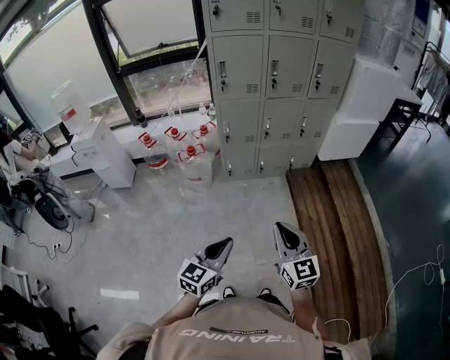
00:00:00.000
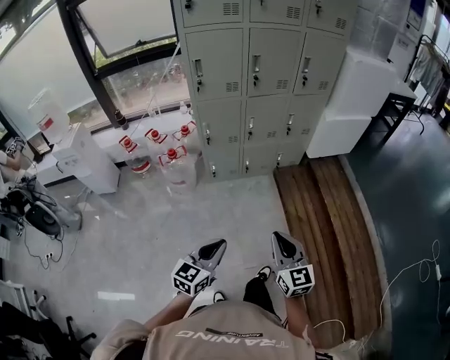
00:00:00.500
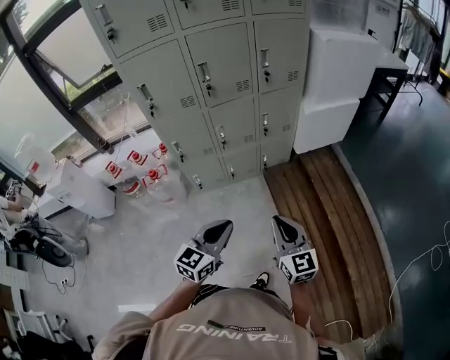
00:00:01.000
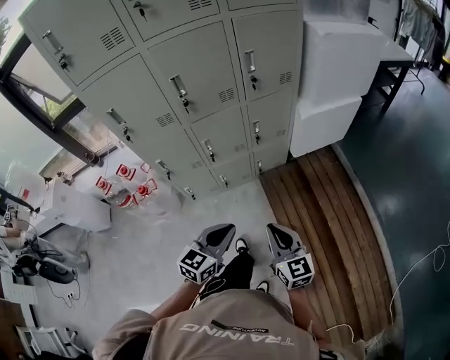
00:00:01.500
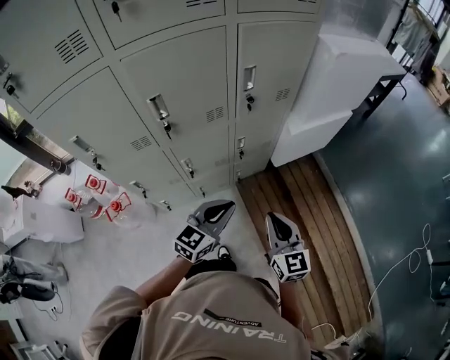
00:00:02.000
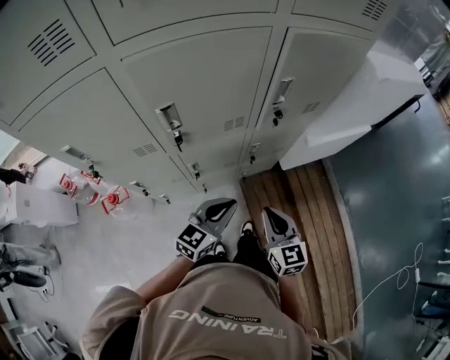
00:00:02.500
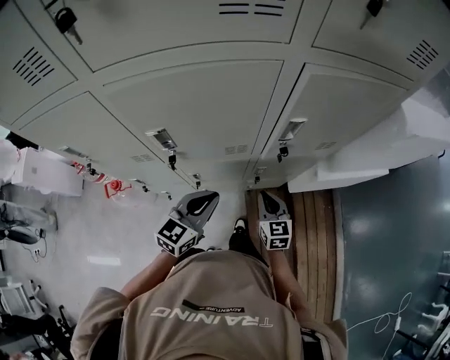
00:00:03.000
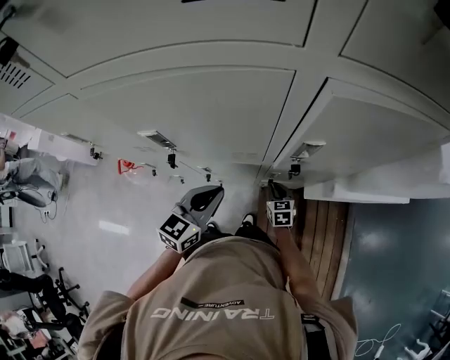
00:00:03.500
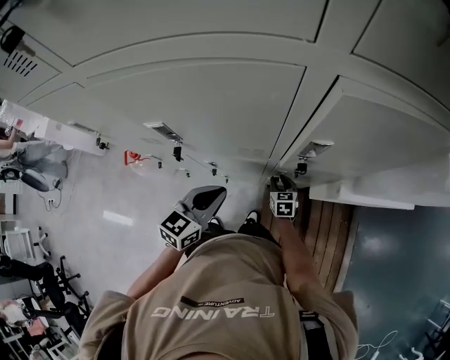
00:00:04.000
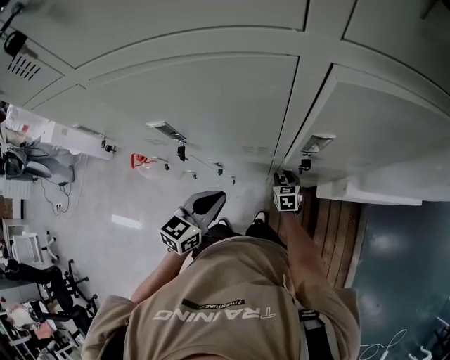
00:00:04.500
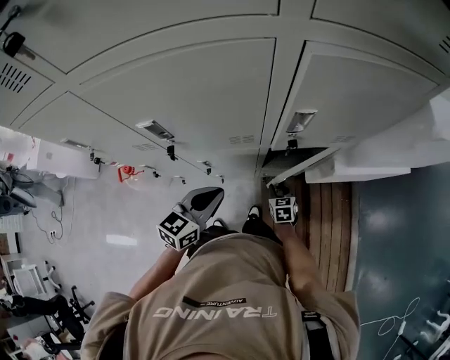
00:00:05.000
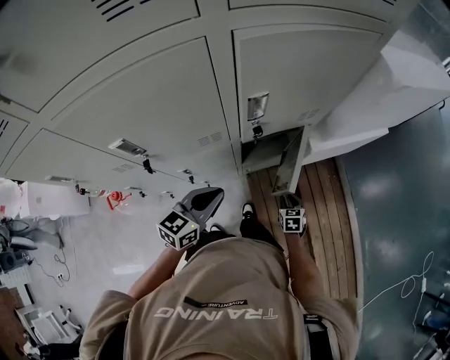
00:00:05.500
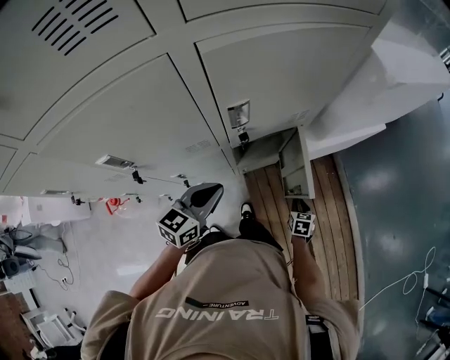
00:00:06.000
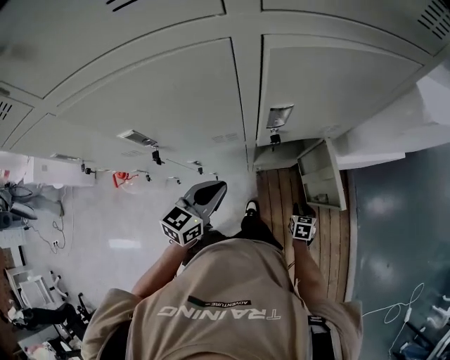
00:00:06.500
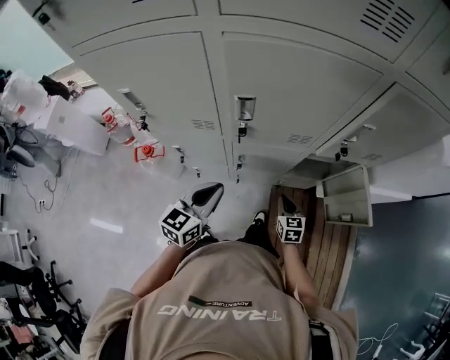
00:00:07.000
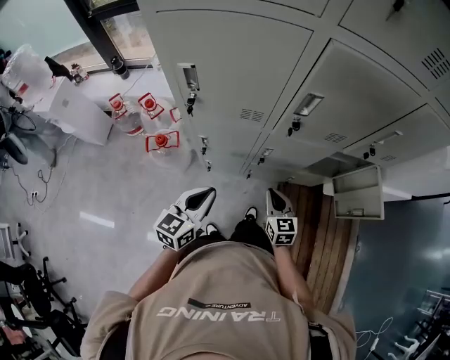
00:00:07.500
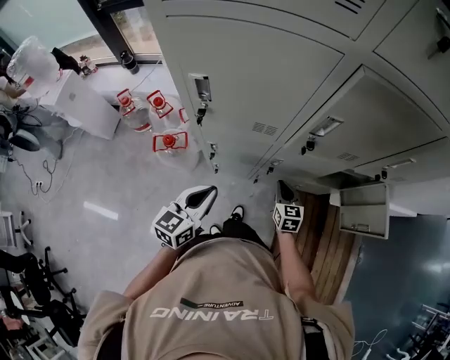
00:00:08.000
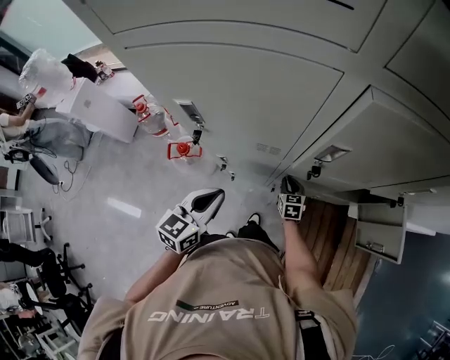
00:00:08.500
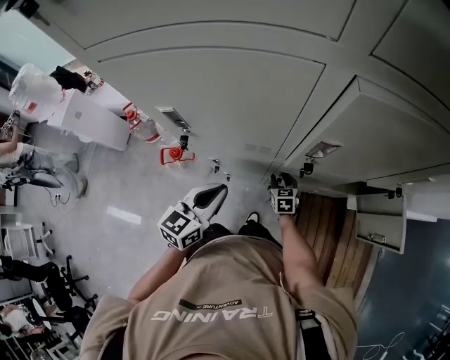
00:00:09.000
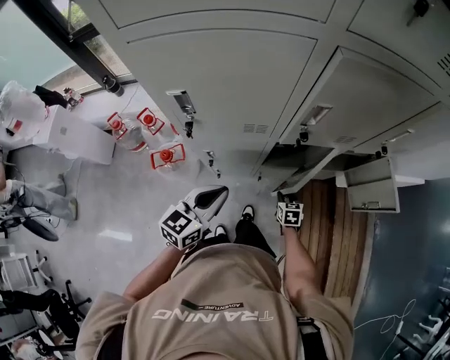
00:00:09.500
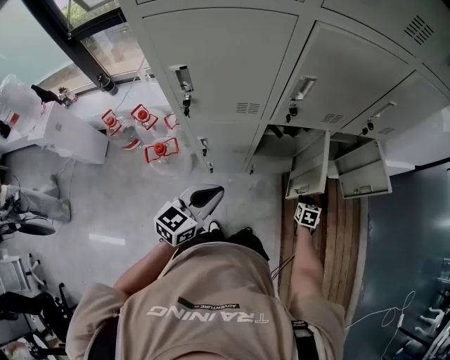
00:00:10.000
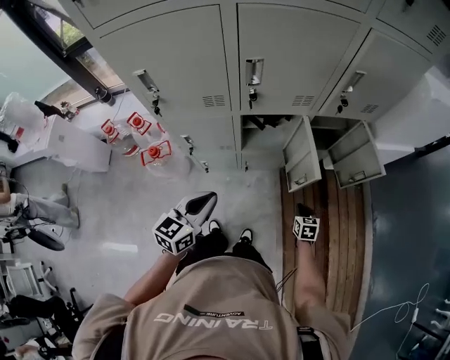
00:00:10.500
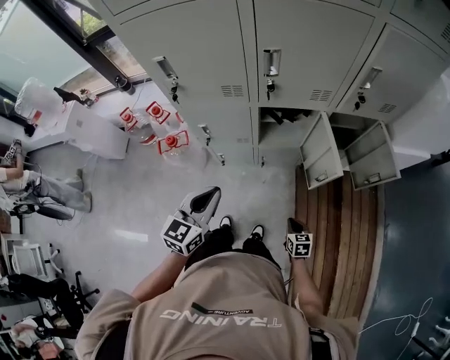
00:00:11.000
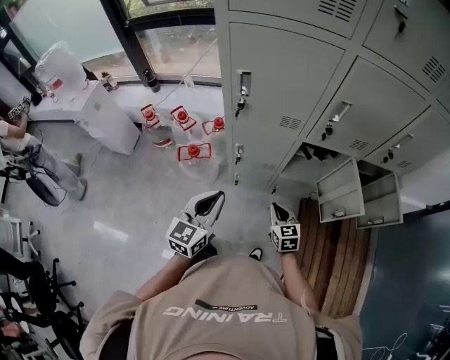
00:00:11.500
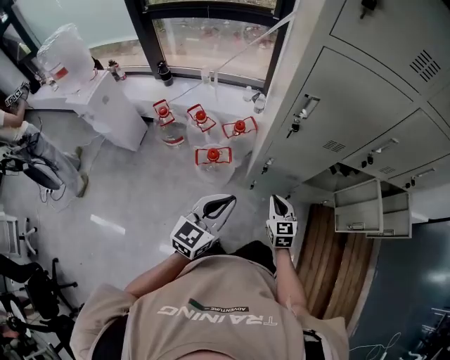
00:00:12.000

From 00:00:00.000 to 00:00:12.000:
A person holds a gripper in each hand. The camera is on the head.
From 00:00:00.000 to 00:00:02.000: The pair of grippers is taken forward, some 60 cm. The left gripper changes its angle by roughly 30 degrees. Meanwhile the right gripper swivels some 20 degrees.
From 00:00:02.000 to 00:00:04.000: The left gripper changes place by about 25 cm, and rotates approximately 30 degrees. The right gripper shifts by roughly 50 cm, and points its fingers approximately 30 degrees further downward.
From 00:00:04.000 to 00:00:06.000: The left gripper ends up some 10 cm from where it was, and changes its angle by some 20 degrees. The right gripper moves approximately 30 cm, and swivels about 40 degrees.
From 00:00:06.000 to 00:00:08.000: The right gripper shifts by some 30 cm, swivels about 50 degrees, and closes its fingers. Meanwhile the left gripper ends up about 15 cm from where it was, and turns by some 30 degrees.
From 00:00:08.000 to 00:00:10.000: The left gripper shifts by about 5 cm, and changes its angle by some 20 degrees. The right gripper changes place by about 25 cm, and changes its angle by some 30 degrees.
From 00:00:10.000 to 00:00:12.000: The left gripper changes place by approximately 25 cm. The right gripper ends up some 50 cm from where it was, and rotates some 40 degrees.

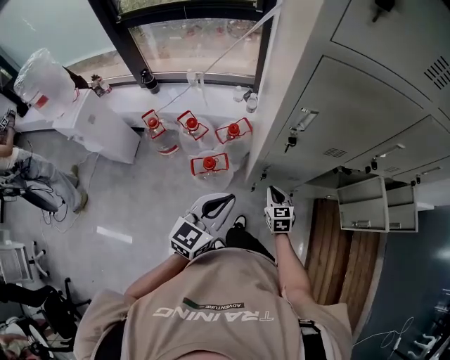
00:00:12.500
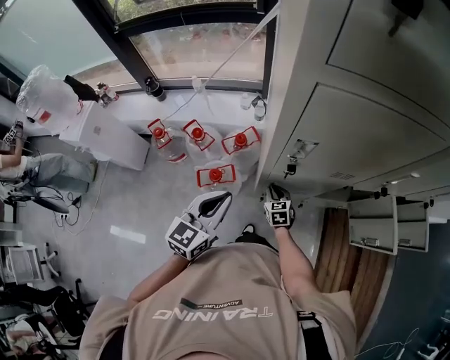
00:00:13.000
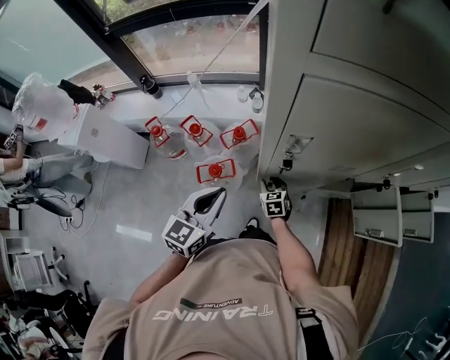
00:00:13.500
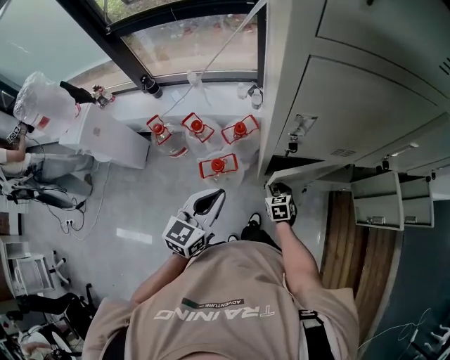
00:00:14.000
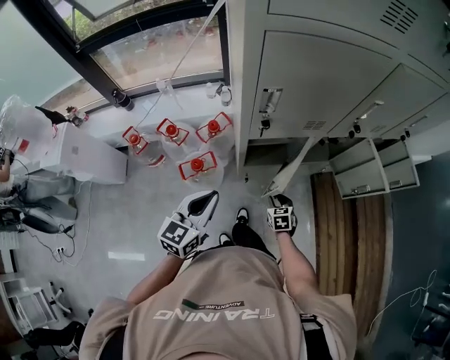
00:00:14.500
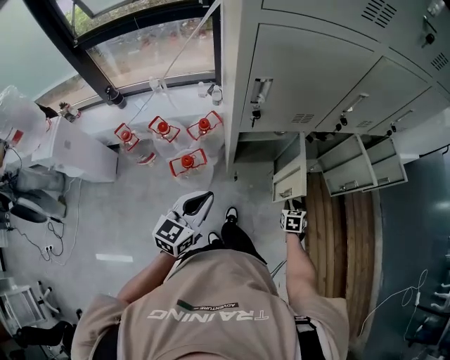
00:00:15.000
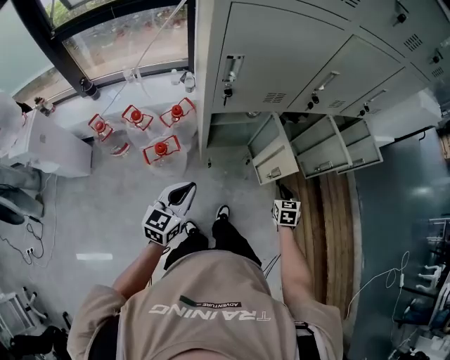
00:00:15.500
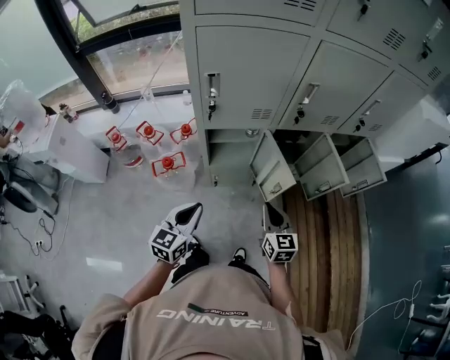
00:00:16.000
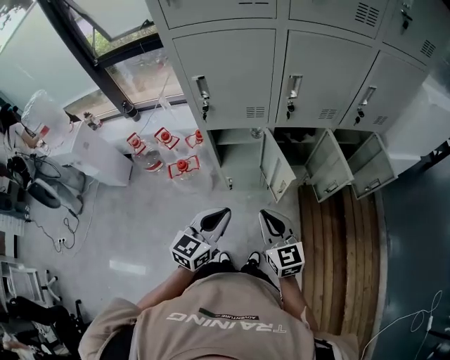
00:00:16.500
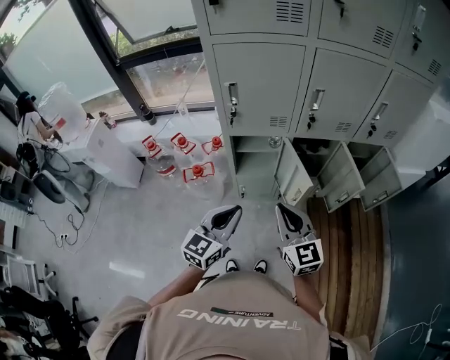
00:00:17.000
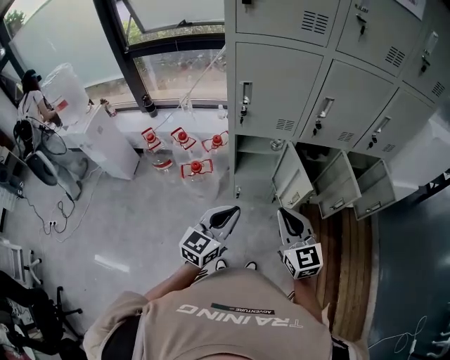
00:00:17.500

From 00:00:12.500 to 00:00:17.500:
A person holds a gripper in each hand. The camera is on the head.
From 00:00:12.500 to 00:00:15.000: The right gripper shifts by approximately 25 cm, and changes its angle by some 30 degrees.
From 00:00:15.000 to 00:00:17.500: The left gripper goes some 20 cm to the right and backward, while the right gripper shifts approximately 40 cm upward and backward, and points its fingers approximately 50 degrees further upward.

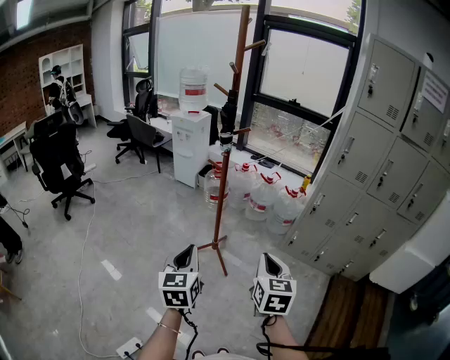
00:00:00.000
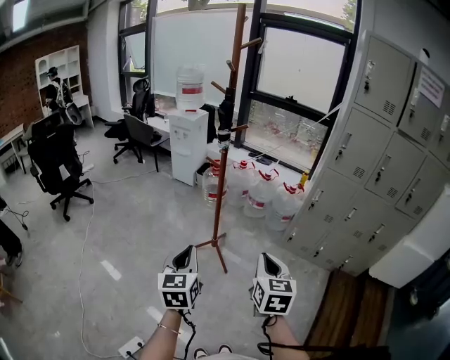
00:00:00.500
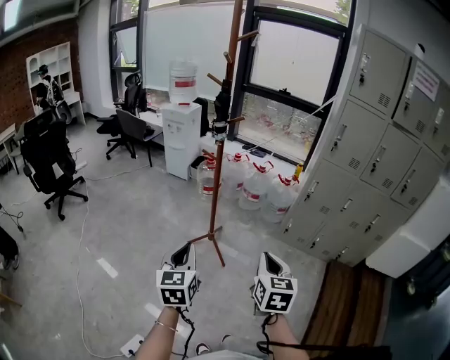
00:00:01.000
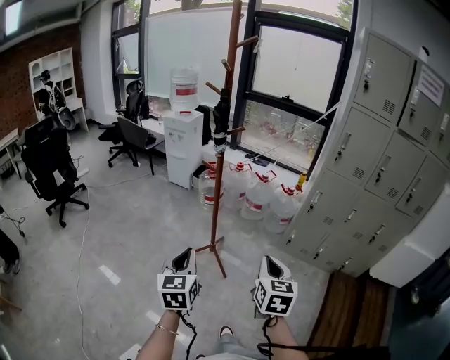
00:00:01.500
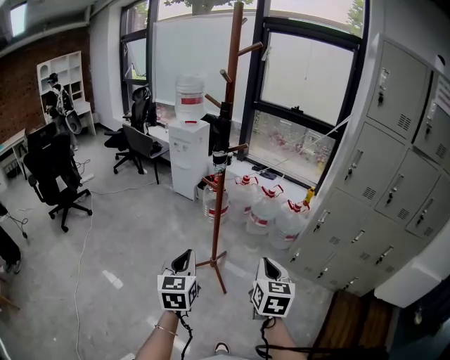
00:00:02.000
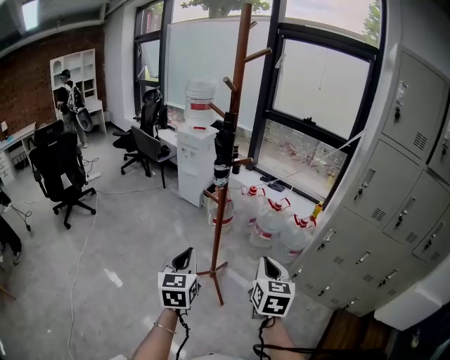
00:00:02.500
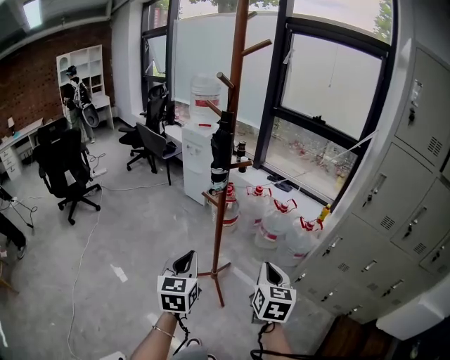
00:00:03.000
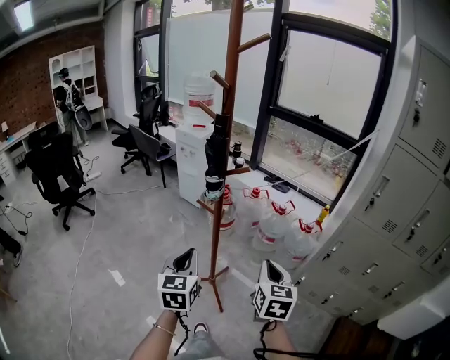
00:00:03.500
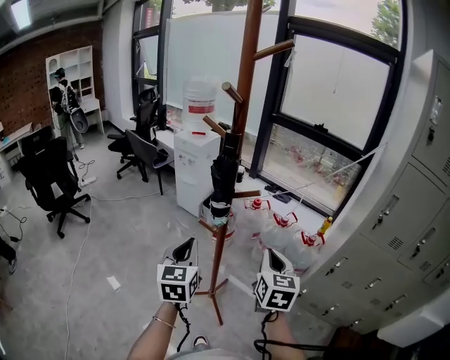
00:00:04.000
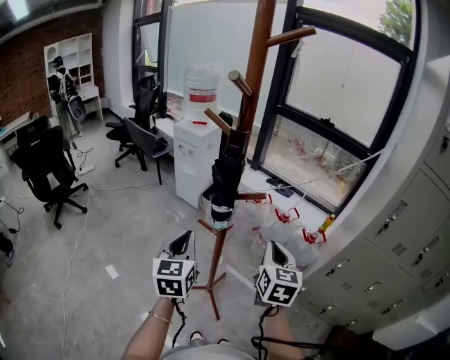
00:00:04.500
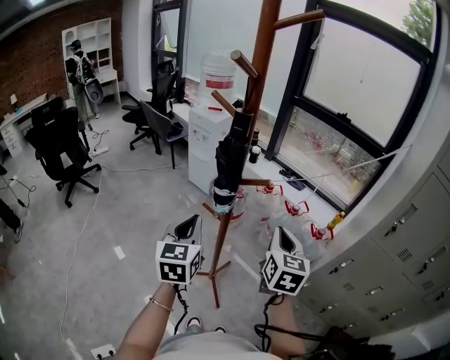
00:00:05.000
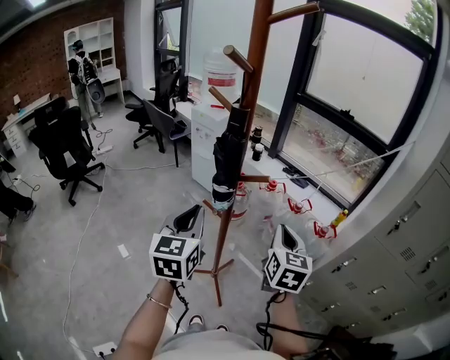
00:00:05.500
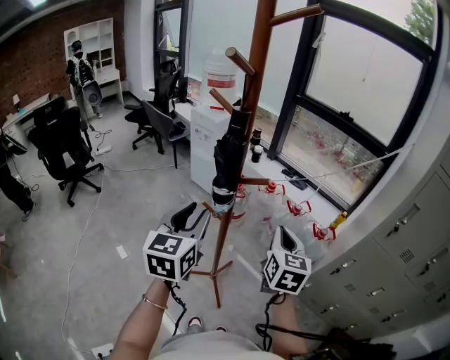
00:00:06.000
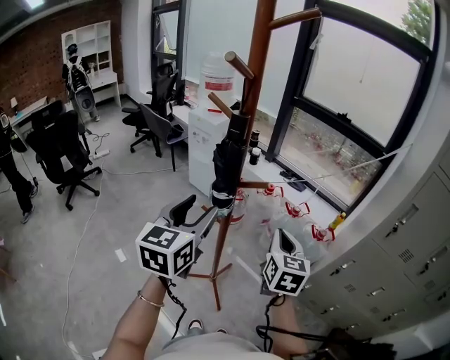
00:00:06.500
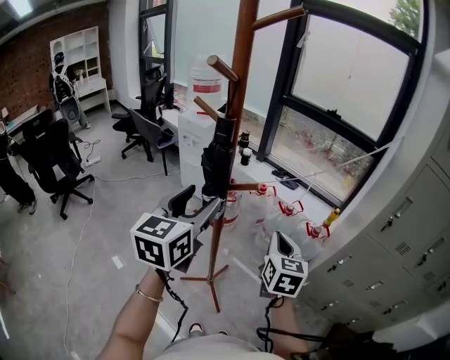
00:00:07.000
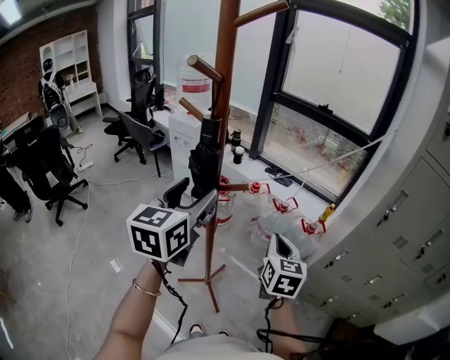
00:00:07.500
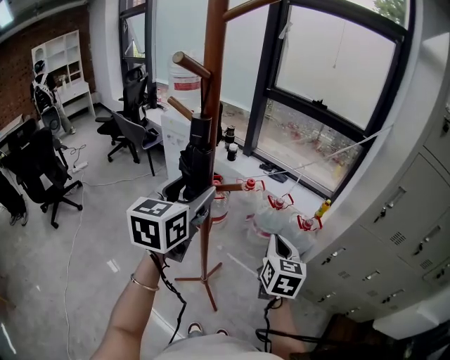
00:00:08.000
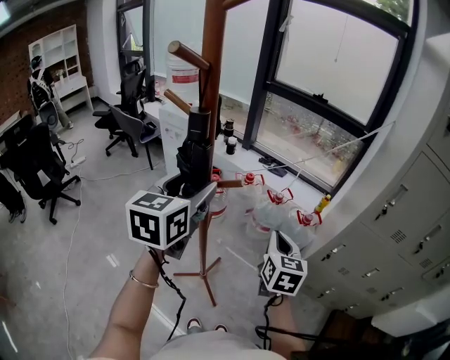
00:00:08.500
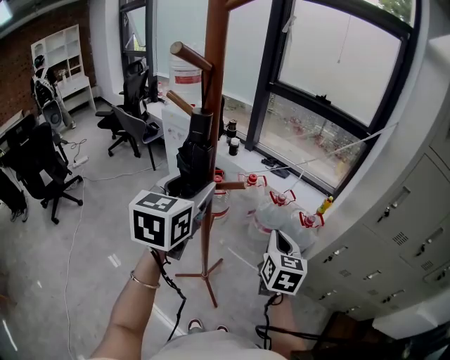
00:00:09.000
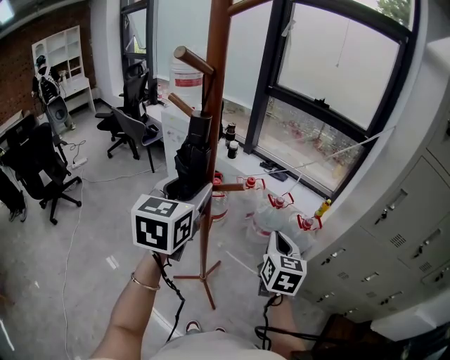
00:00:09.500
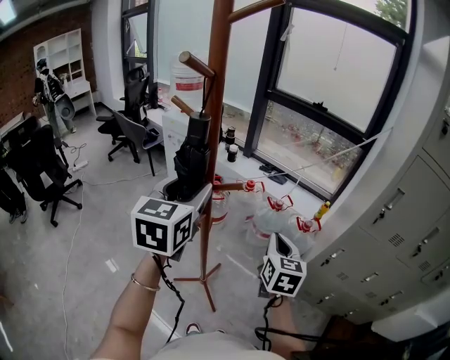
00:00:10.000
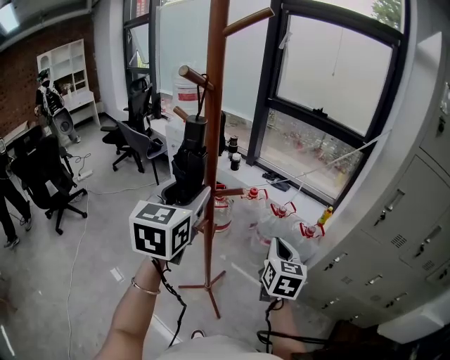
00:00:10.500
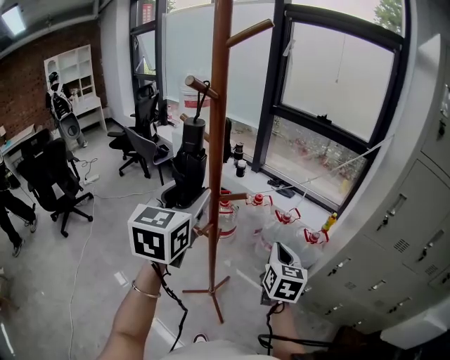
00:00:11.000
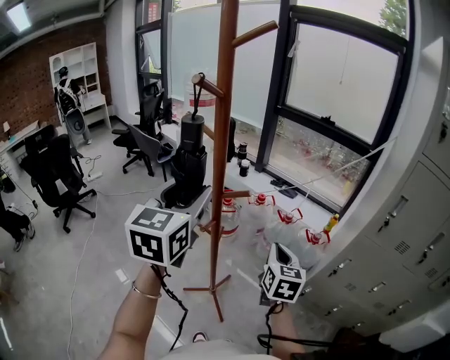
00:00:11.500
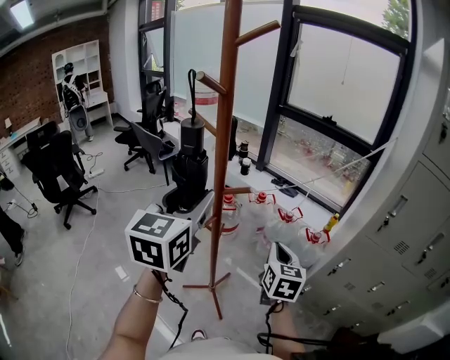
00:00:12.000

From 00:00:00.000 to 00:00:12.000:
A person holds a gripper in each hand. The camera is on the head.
From 00:00:00.000 to 00:00:02.000: The grippers both shift forward by roughly 10 cm.
From 00:00:02.000 to 00:00:04.000: The grippers both shift forward by about 30 cm.
From 00:00:04.000 to 00:00:06.000: The right gripper shifts approximately 5 cm forward; the left gripper shifts some 5 cm upward, and opens.
From 00:00:06.000 to 00:00:08.000: The right gripper moves approximately 5 cm. Meanwhile the left gripper shifts about 10 cm forward and upward, and opens.
From 00:00:08.000 to 00:00:10.000: The grippers stay close to where they were, moving slightly.
From 00:00:10.000 to 00:00:12.000: The left gripper shifts roughly 5 cm backward.
